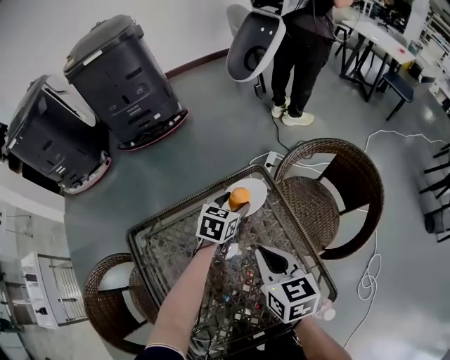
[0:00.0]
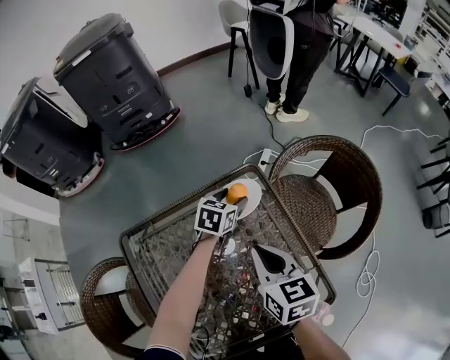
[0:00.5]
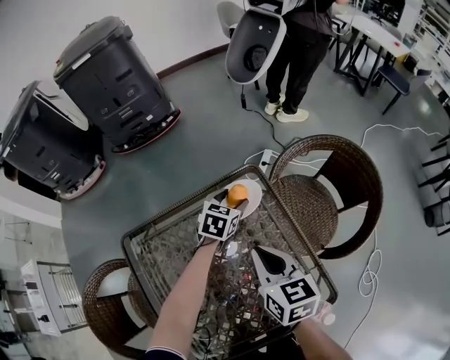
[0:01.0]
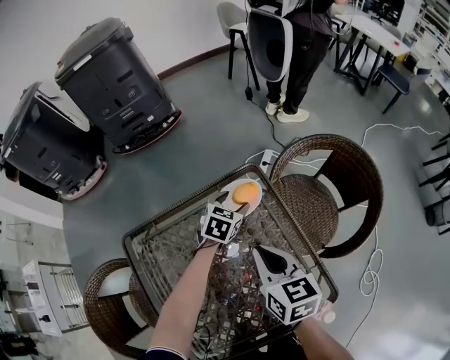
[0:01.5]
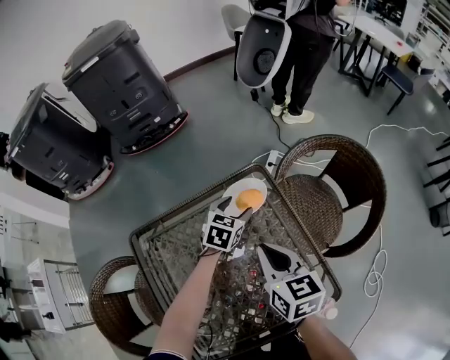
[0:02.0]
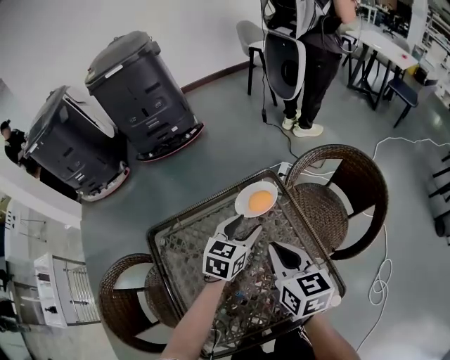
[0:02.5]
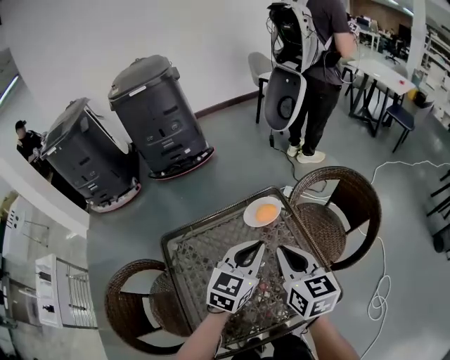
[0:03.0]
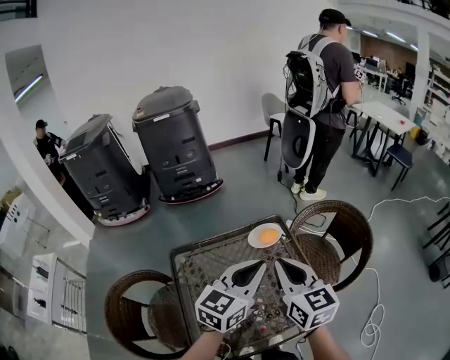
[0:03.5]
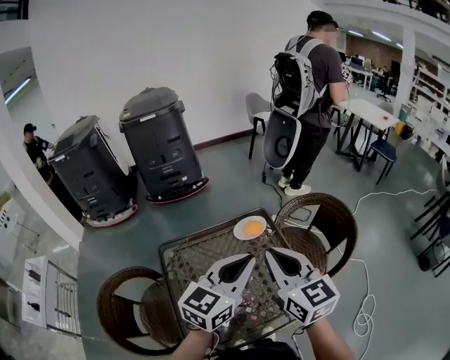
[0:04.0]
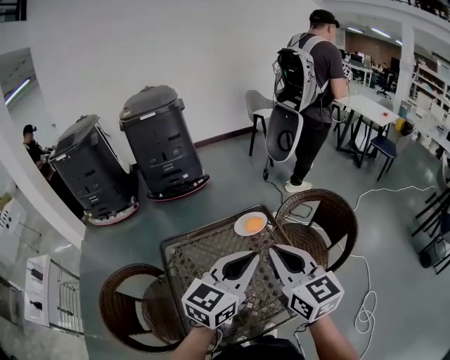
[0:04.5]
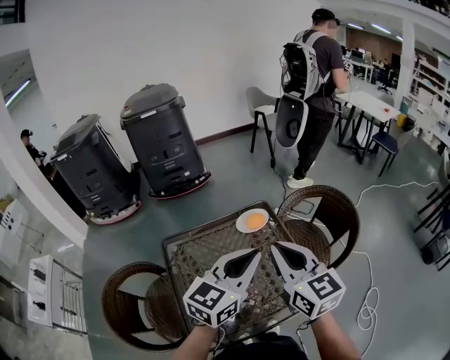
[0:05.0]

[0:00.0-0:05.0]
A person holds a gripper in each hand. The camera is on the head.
0:00.0 to 0:02.5: The left gripper goes about 15 cm backward and upward.
0:02.5 to 0:05.0: Both grippers travel together upward and backward, approximately 30 cm. The right gripper rotates approximately 30 degrees, while the left gripper changes its angle by some 30 degrees, and closes its fingers.

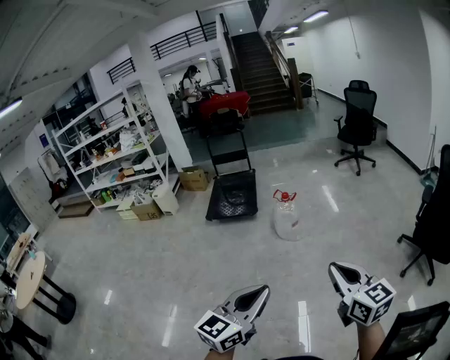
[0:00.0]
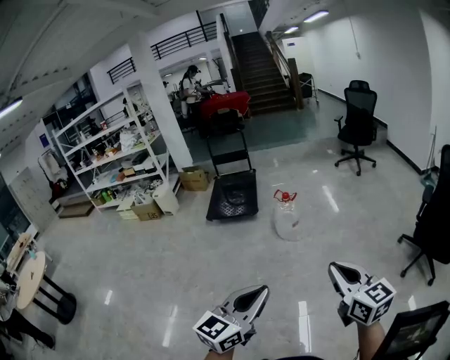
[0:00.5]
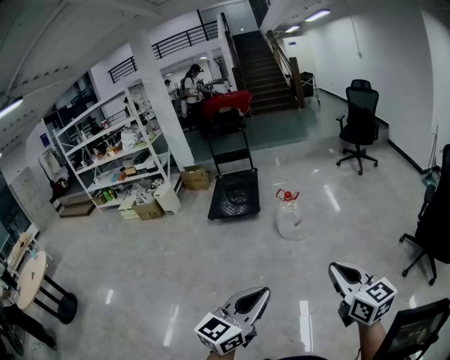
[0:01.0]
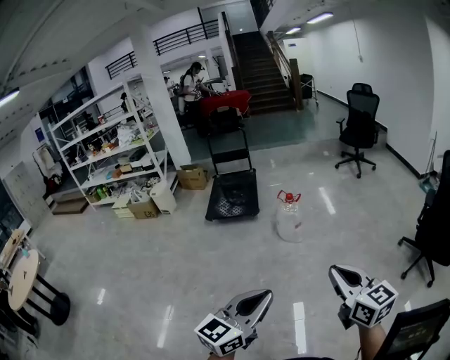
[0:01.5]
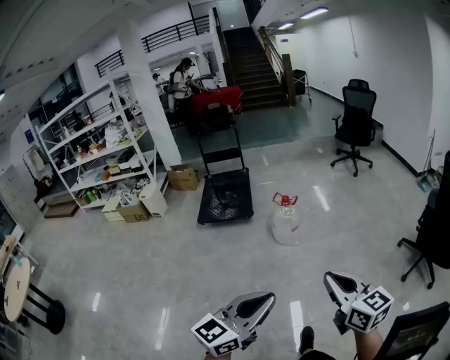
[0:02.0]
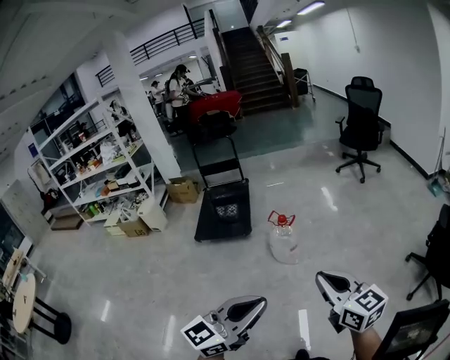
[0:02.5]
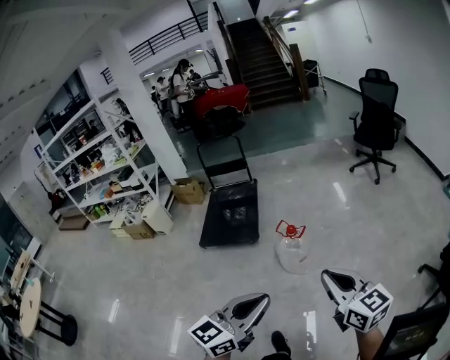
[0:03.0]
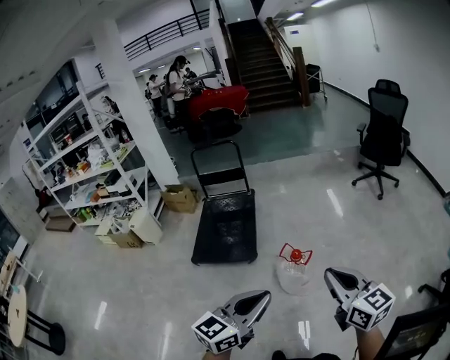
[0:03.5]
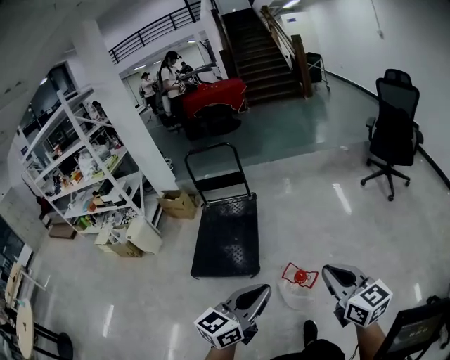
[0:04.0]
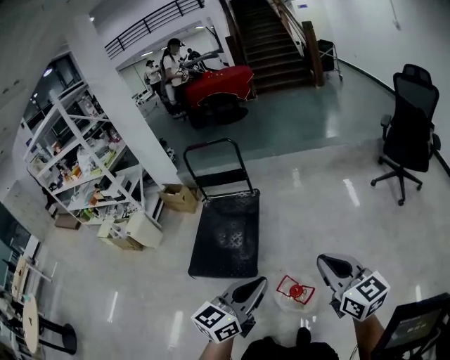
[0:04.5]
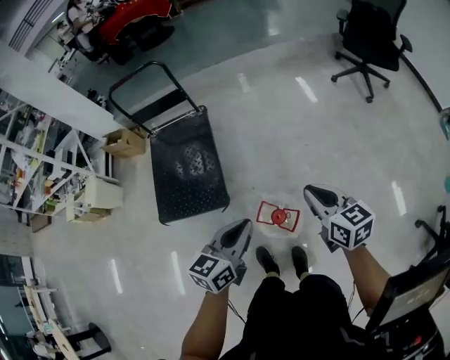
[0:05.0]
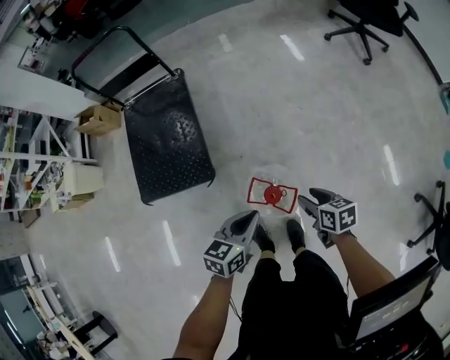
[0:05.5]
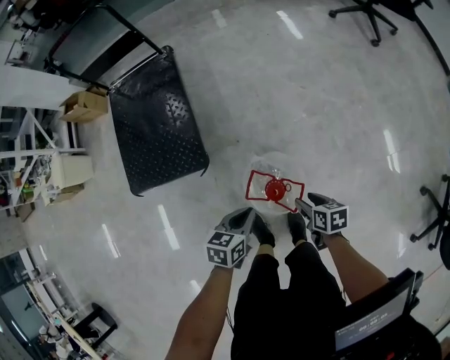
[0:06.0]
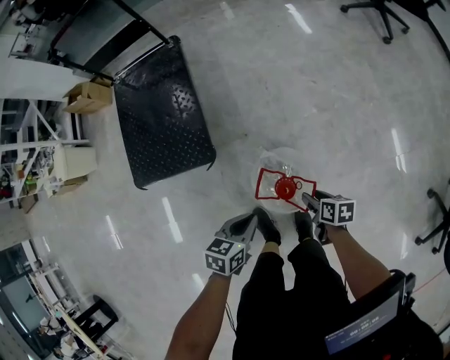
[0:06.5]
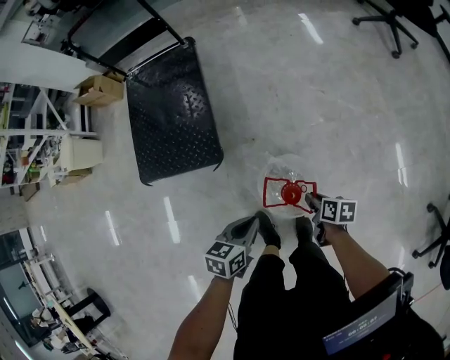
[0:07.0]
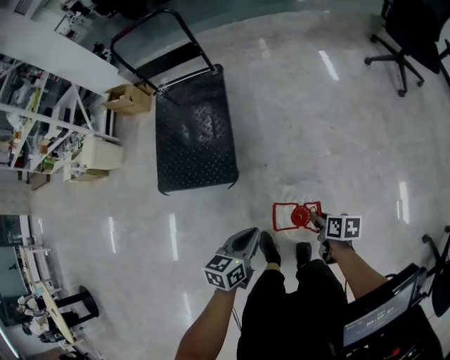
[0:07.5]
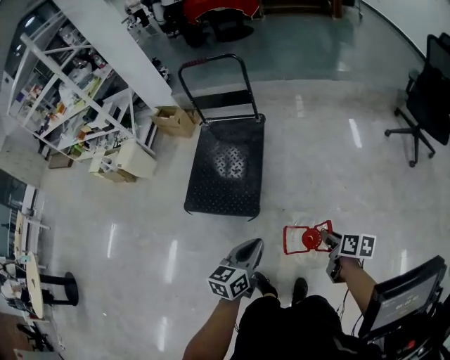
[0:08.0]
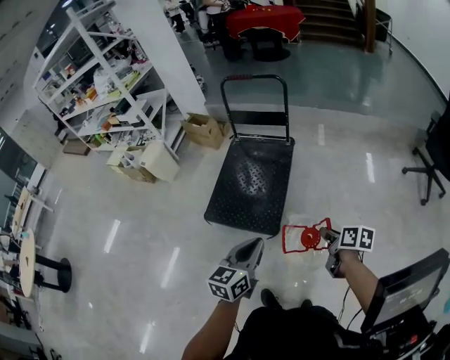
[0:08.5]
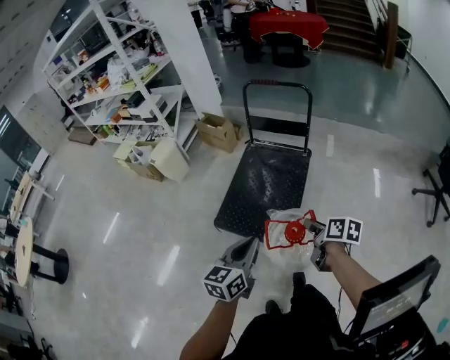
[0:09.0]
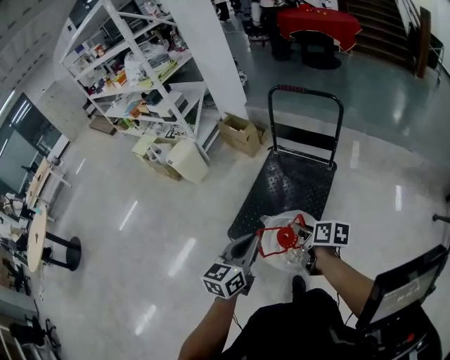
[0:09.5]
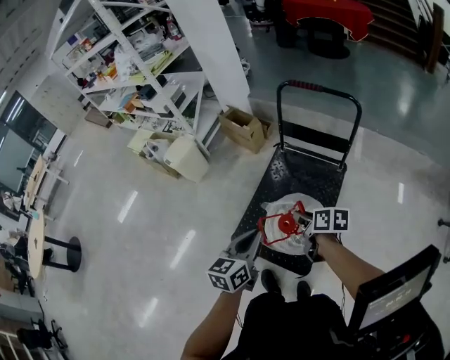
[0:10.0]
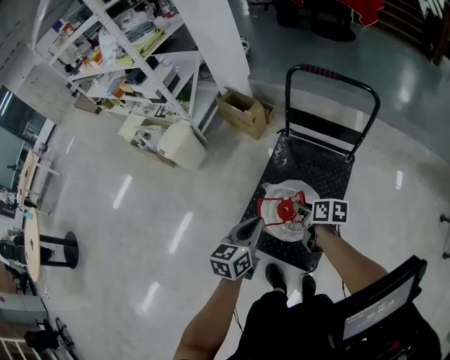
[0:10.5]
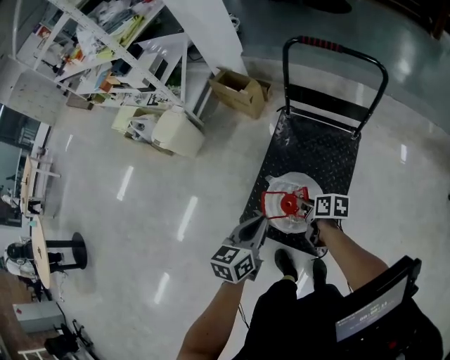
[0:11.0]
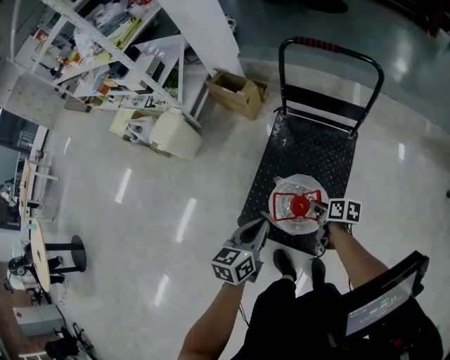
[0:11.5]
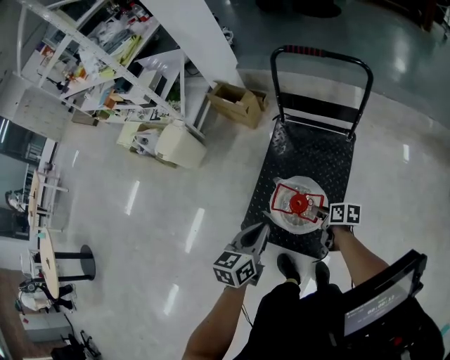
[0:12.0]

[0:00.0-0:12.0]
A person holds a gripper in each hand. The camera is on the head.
0:00.0 to 0:02.0: The right gripper heads to the left and forward, covering about 15 cm; the left gripper heads forward and to the left, covering roughly 15 cm.
0:02.0 to 0:04.0: The two grippers travel together, forward, about 80 cm.
0:04.0 to 0:06.0: The right gripper is displaced downward by some 60 cm, tips its fingers downward by approximately 50 degrees, and opens its fingers. The left gripper goes some 60 cm downward and forward, and angles its fingers downward, by about 40 degrees.
0:06.0 to 0:08.0: The two grippers go some 30 cm upward. The right gripper closes its fingers, while the left gripper swivels roughly 40 degrees.
0:08.0 to 0:10.0: Both grippers are carried approximately 60 cm. The right gripper rotates approximately 30 degrees. Meanwhile the left gripper rotates approximately 20 degrees.
0:10.0 to 0:12.0: The right gripper heads downward, covering approximately 20 cm. The left gripper is displaced forward and downward by some 10 cm.

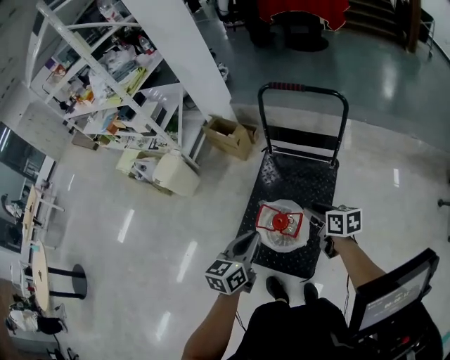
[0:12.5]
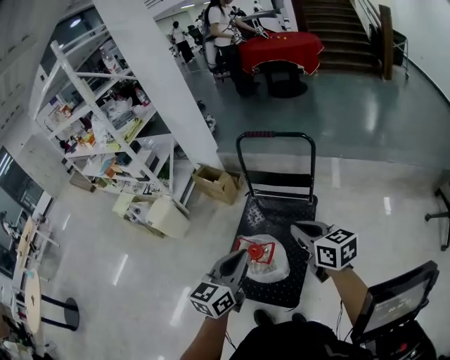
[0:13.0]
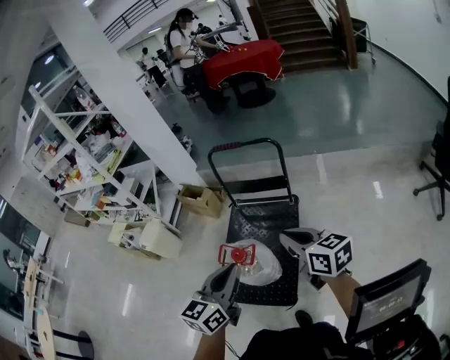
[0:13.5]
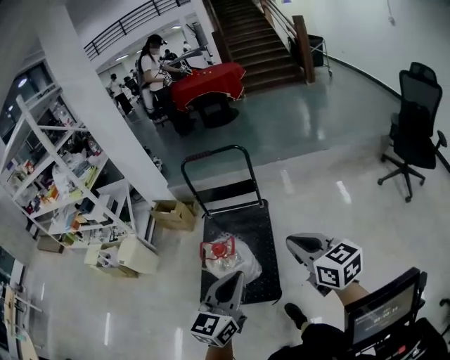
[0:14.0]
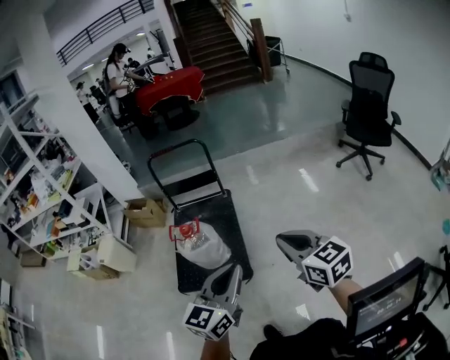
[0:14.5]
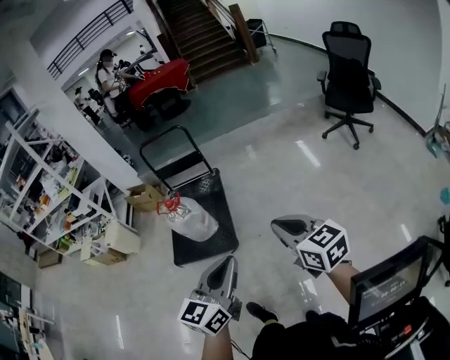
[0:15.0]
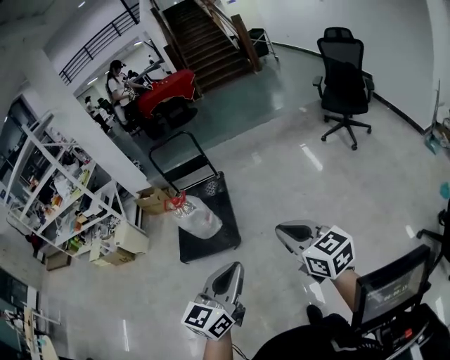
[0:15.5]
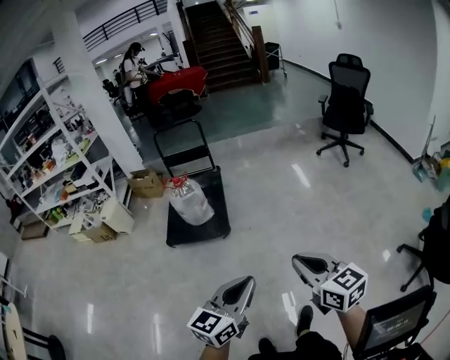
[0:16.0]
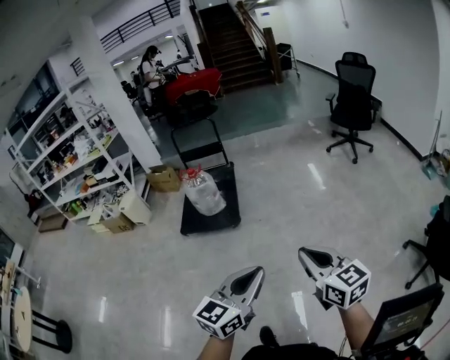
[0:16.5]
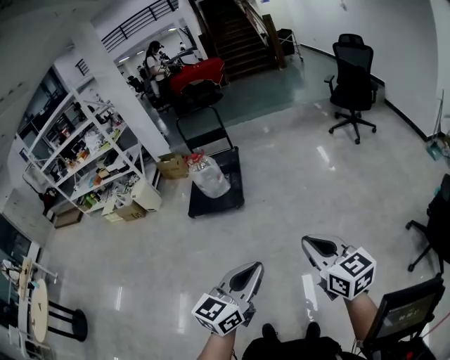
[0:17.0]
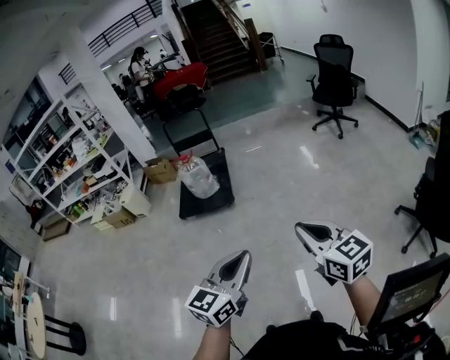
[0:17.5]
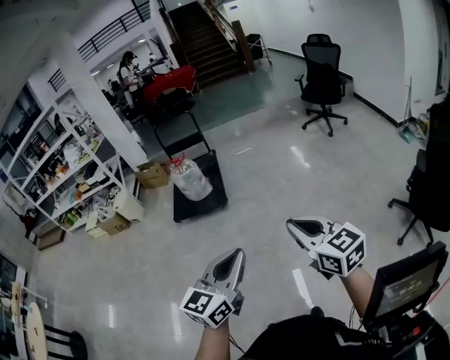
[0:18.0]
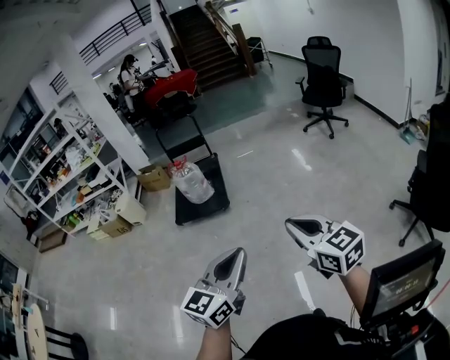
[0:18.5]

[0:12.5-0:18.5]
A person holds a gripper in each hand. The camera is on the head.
0:12.5 to 0:14.5: The pair of grippers is taken approximately 50 cm. The left gripper turns by roughly 40 degrees; the right gripper rotates some 40 degrees, and closes.
0:14.5 to 0:16.5: The pair of grippers is taken backward, about 70 cm.
0:16.5 to 0:18.5: Both grippers move backward, some 15 cm.

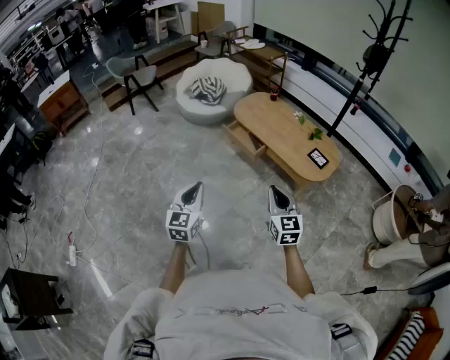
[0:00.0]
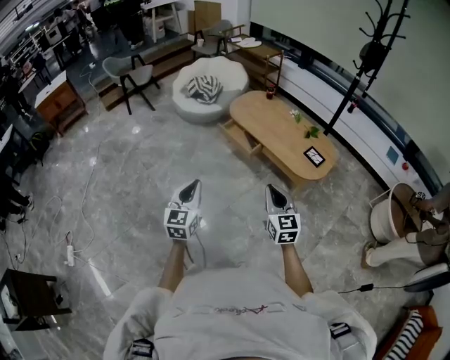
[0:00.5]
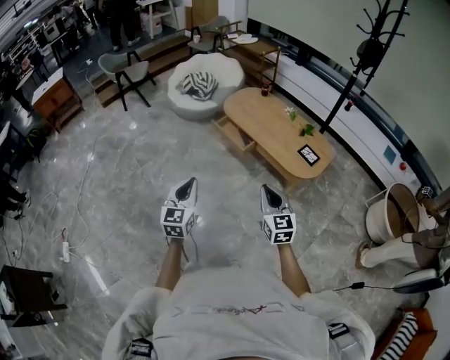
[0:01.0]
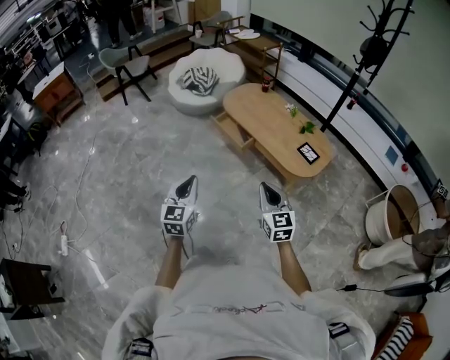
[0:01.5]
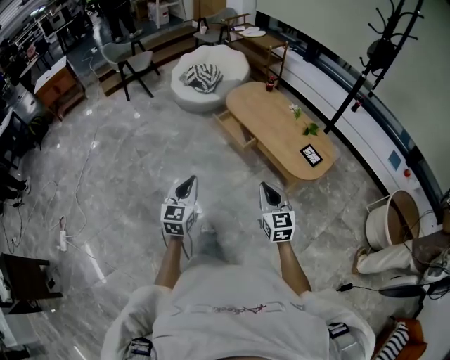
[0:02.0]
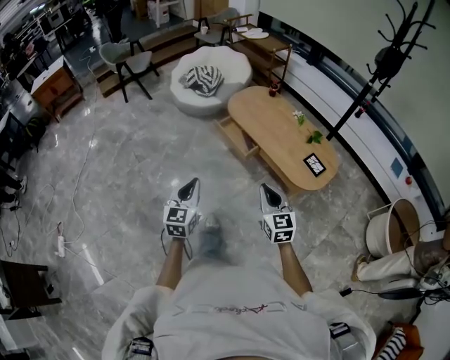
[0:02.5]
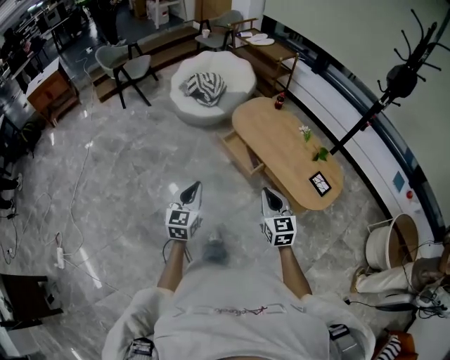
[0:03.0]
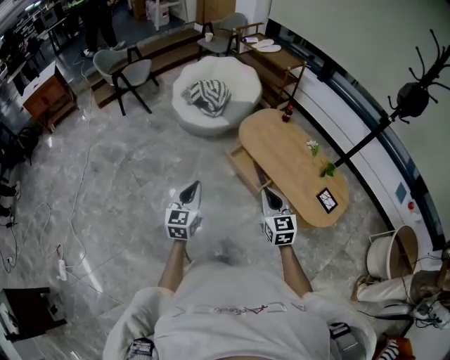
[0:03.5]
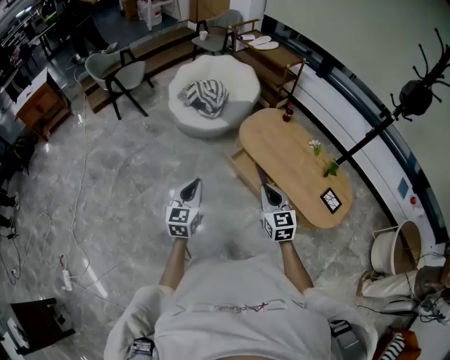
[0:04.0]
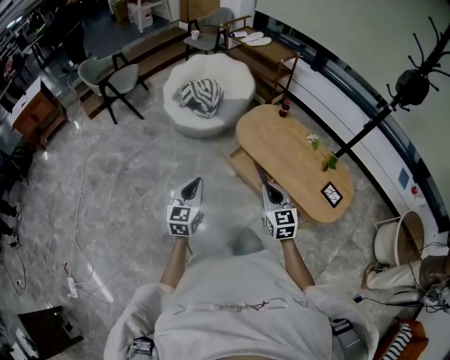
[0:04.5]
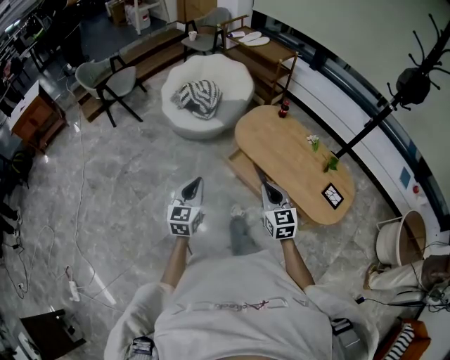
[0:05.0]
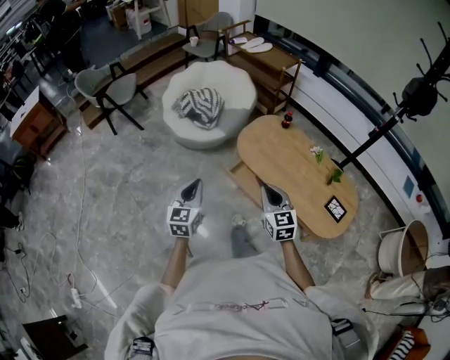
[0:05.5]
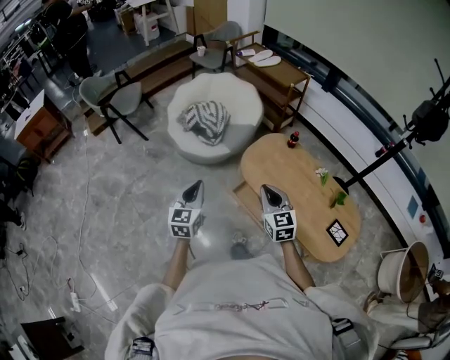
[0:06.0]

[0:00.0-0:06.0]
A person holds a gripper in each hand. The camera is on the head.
0:00.0 to 0:02.0: The two grippers go about 10 cm to the right.
0:02.0 to 0:04.0: The pair of grippers is taken forward, about 50 cm.
0:04.0 to 0:06.0: Both grippers travel together forward, some 25 cm.
